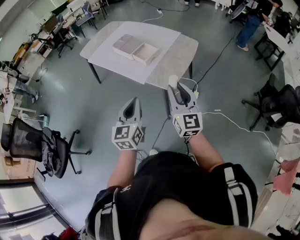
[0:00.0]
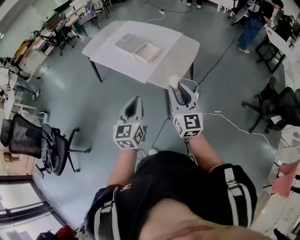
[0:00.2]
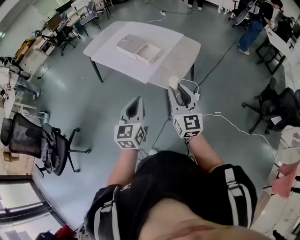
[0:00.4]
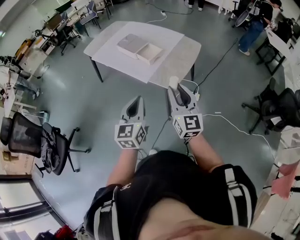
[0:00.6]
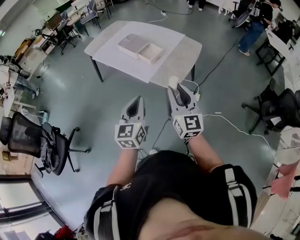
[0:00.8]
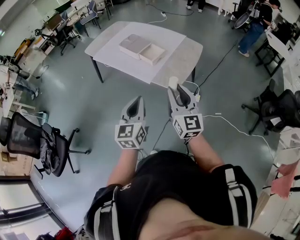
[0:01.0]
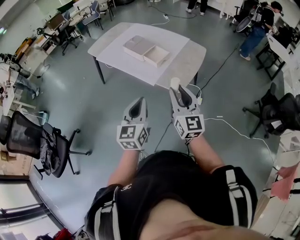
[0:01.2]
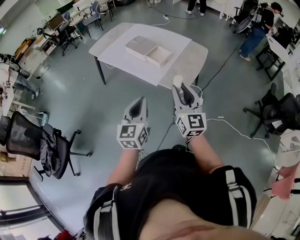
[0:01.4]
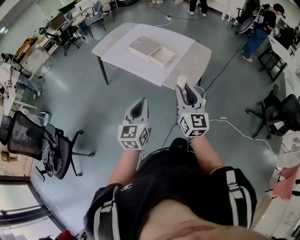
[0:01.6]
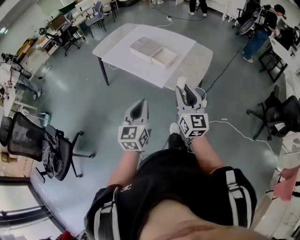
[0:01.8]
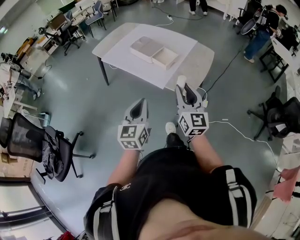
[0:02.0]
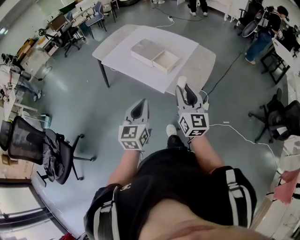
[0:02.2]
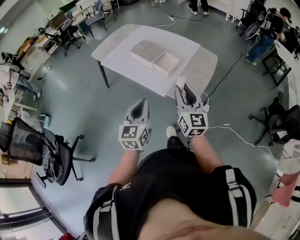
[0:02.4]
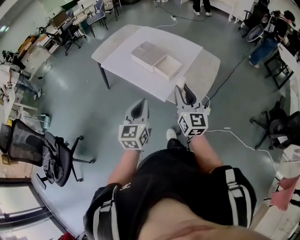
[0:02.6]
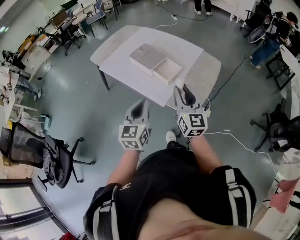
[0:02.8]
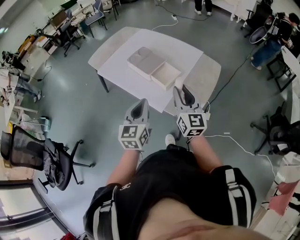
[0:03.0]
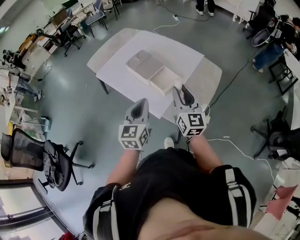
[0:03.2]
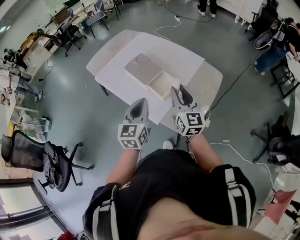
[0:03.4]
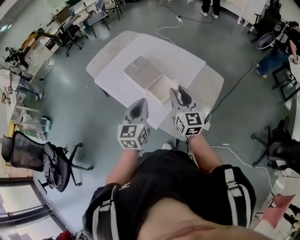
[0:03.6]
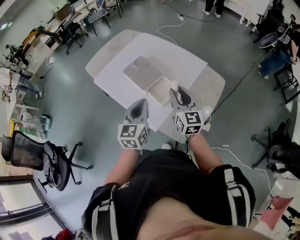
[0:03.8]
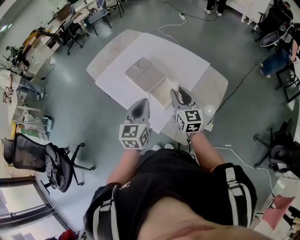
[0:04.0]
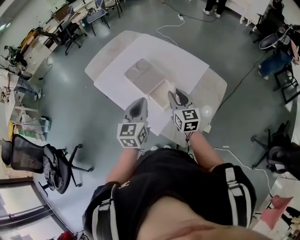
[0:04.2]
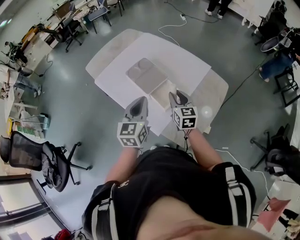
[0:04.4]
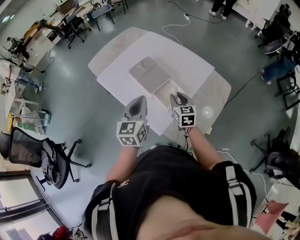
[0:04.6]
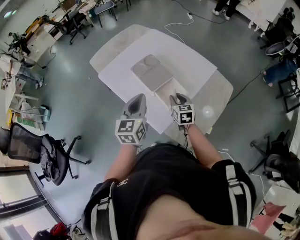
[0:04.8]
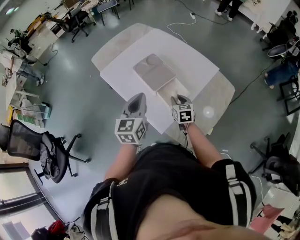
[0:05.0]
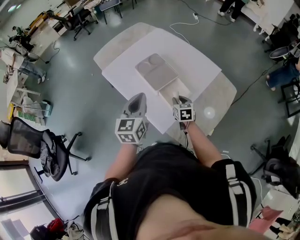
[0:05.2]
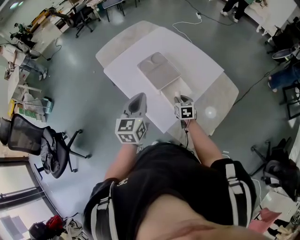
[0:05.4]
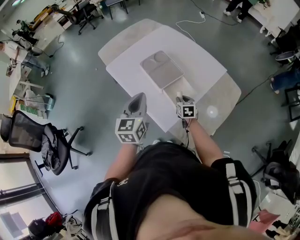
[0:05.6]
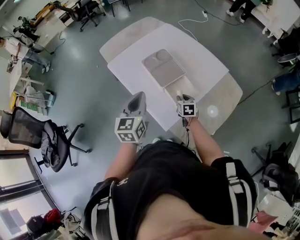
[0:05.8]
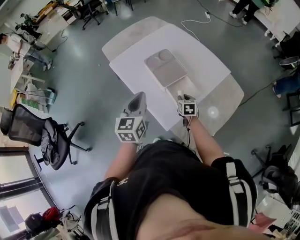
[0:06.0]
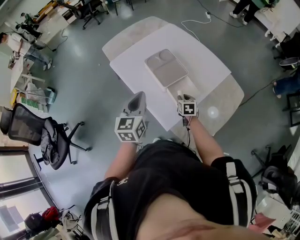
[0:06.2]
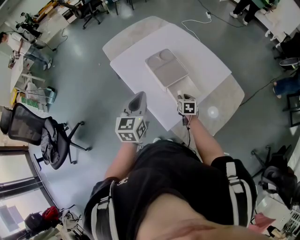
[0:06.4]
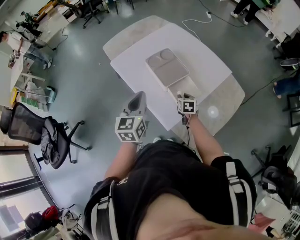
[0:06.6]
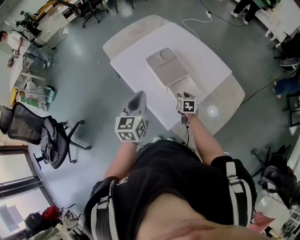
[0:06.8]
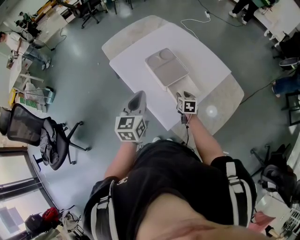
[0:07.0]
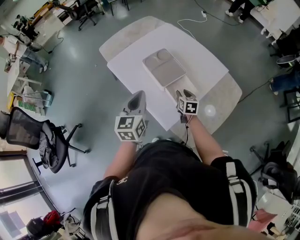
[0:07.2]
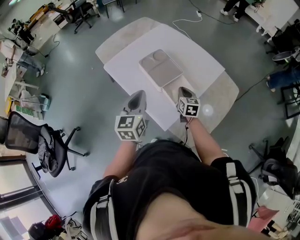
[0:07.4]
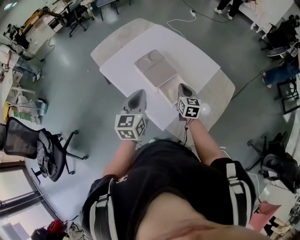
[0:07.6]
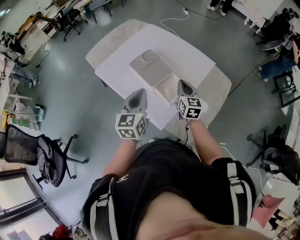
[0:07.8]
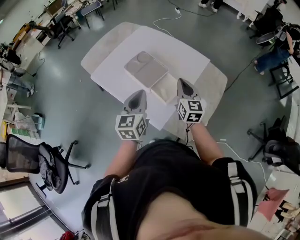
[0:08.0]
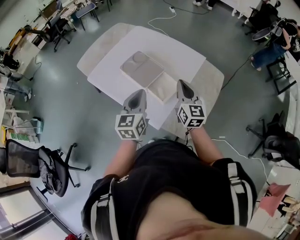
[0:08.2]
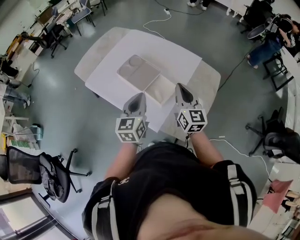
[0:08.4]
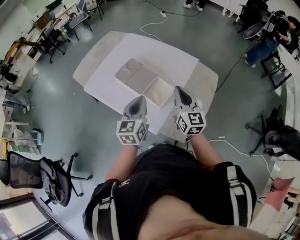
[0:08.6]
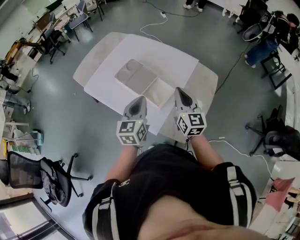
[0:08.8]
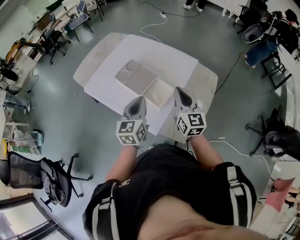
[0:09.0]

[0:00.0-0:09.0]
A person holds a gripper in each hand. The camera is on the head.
0:00.0 to 0:01.6: Both grippers travel together to the left, roughly 10 cm.
0:01.6 to 0:03.0: The grippers both shift forward by roughly 25 cm.
0:03.0 to 0:04.4: The right gripper is displaced forward and downward by approximately 25 cm, and changes its angle by about 20 degrees. The left gripper travels forward by some 20 cm.
0:04.4 to 0:06.0: The left gripper shifts roughly 10 cm to the left. Meanwhile the right gripper heads downward, covering some 20 cm, and changes its angle by about 30 degrees.
0:06.0 to 0:07.6: The right gripper moves upward, some 15 cm, rotates some 30 degrees, and closes up.
0:07.6 to 0:09.0: The left gripper travels to the right by approximately 10 cm; the right gripper heads upward, backward and to the right, covering approximately 15 cm.

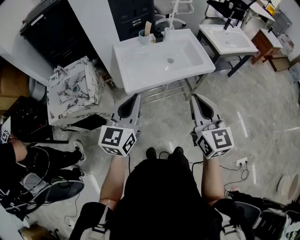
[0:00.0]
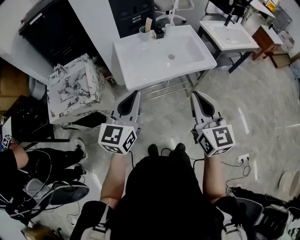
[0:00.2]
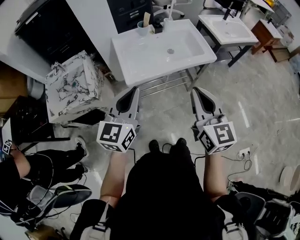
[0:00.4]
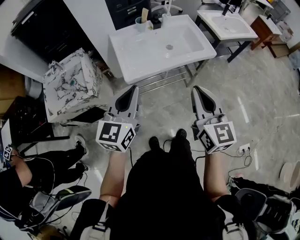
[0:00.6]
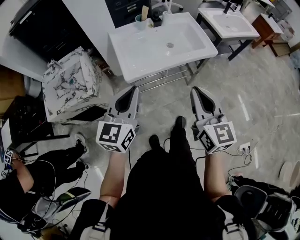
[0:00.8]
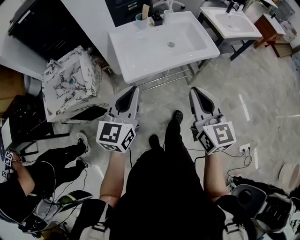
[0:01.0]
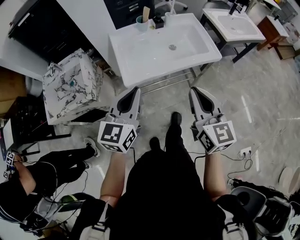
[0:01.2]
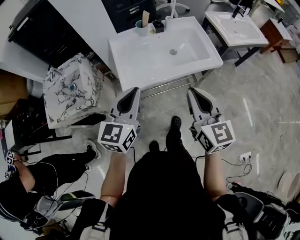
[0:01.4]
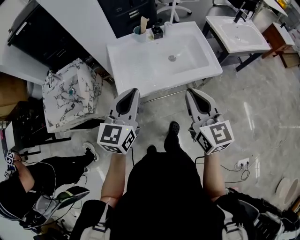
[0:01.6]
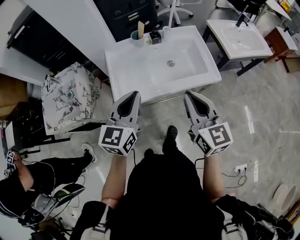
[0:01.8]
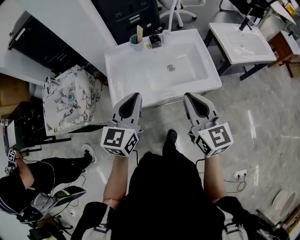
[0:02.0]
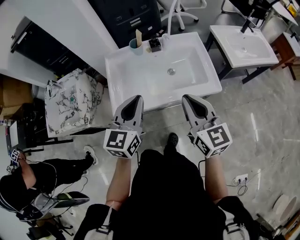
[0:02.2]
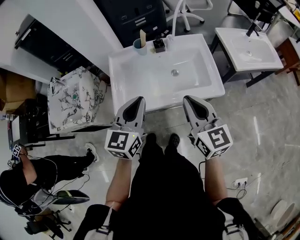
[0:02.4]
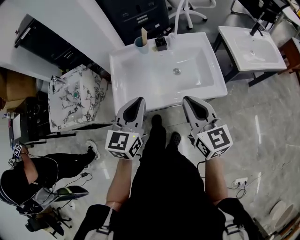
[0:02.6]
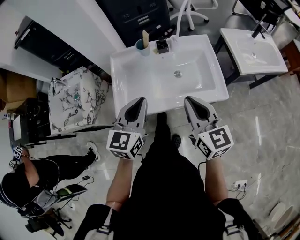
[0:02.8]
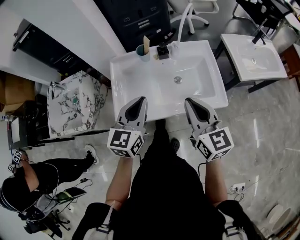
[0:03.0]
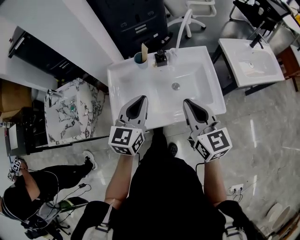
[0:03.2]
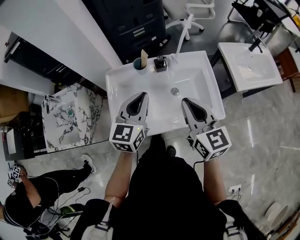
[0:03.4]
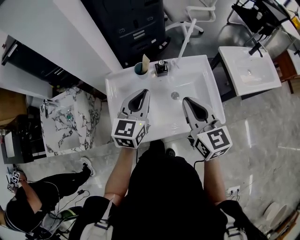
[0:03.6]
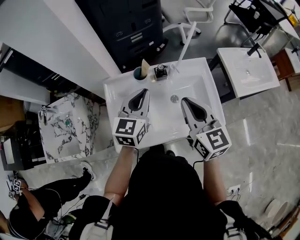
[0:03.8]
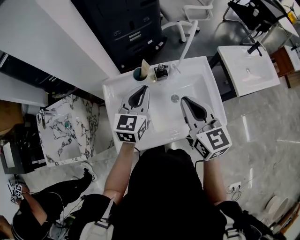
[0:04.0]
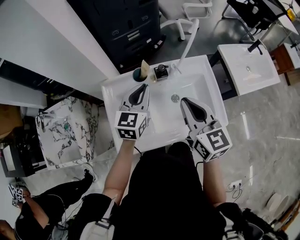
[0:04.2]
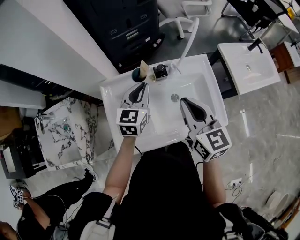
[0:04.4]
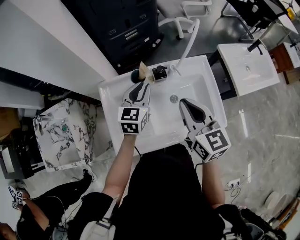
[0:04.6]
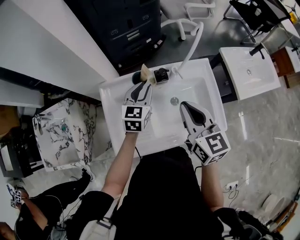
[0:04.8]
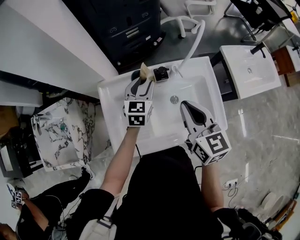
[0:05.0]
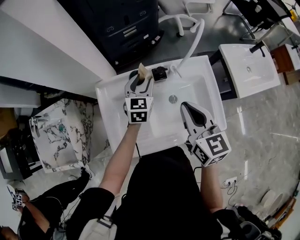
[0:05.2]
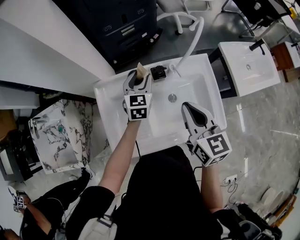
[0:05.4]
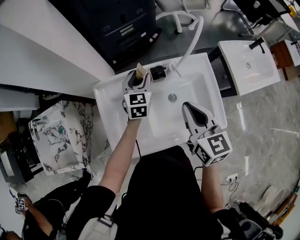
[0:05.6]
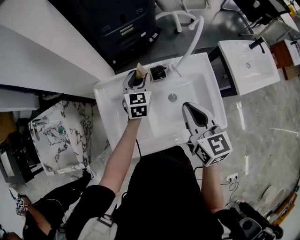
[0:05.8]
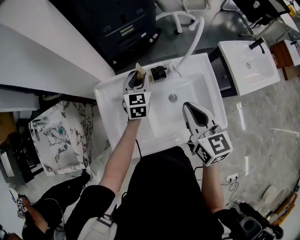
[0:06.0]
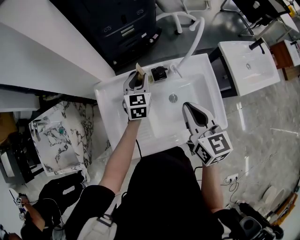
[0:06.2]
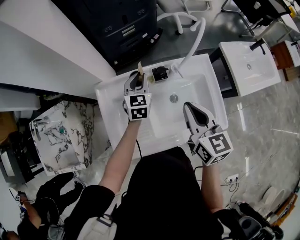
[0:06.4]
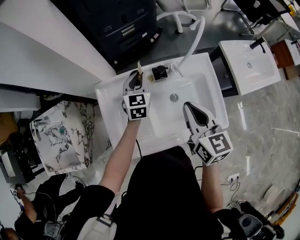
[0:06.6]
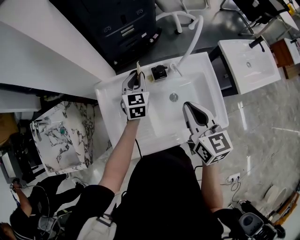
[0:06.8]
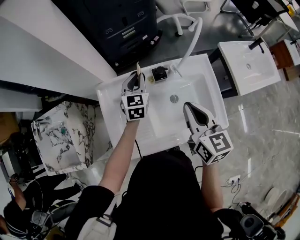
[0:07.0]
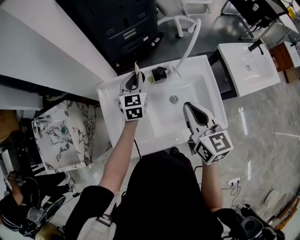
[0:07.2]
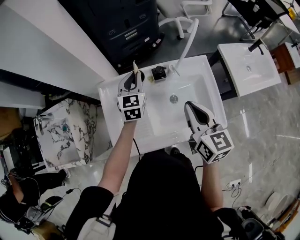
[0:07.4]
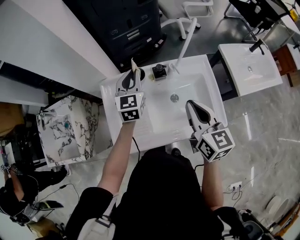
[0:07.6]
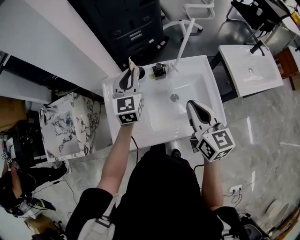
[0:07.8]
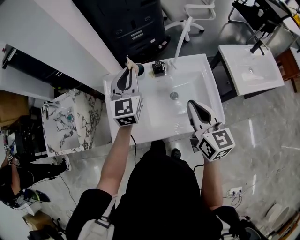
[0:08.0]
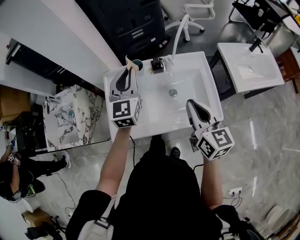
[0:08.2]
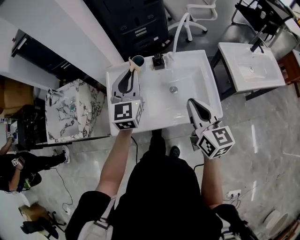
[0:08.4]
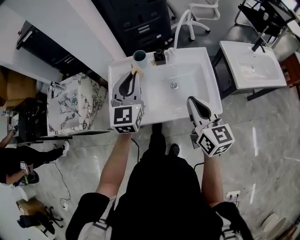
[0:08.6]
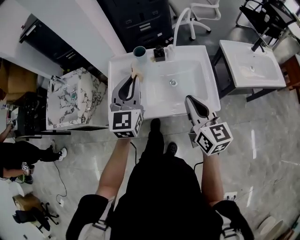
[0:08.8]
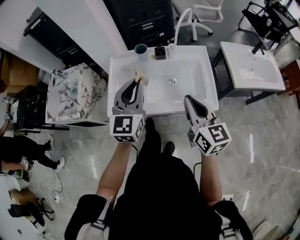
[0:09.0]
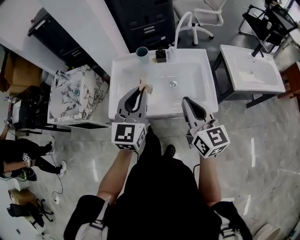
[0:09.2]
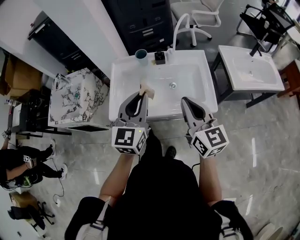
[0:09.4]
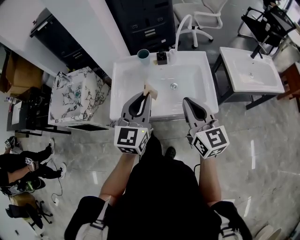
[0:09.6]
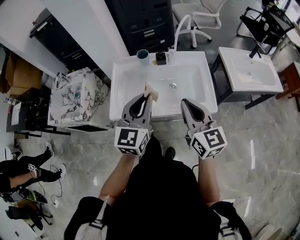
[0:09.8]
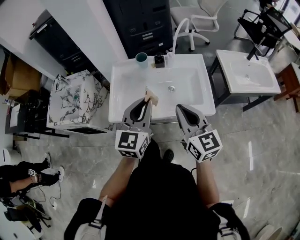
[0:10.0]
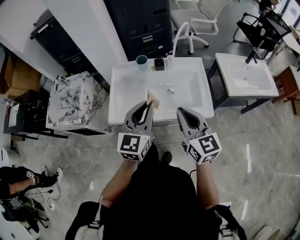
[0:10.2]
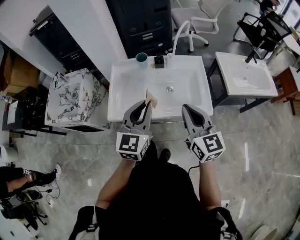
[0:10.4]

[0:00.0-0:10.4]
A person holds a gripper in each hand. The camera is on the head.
0:00.0 to 0:01.4: Both grippers move forward, about 10 cm.
0:01.4 to 0:03.0: The two grippers go some 20 cm forward and to the right.
0:03.0 to 0:04.4: Both grippers move forward, approximately 20 cm.
0:04.4 to 0:06.0: The left gripper moves forward and downward, approximately 15 cm, and opens.
0:06.0 to 0:07.4: The left gripper heads upward, covering about 5 cm, and closes.
0:07.4 to 0:09.0: The left gripper goes some 35 cm backward and upward. The right gripper shifts some 15 cm backward.
0:09.0 to 0:10.4: The left gripper travels backward by roughly 5 cm.

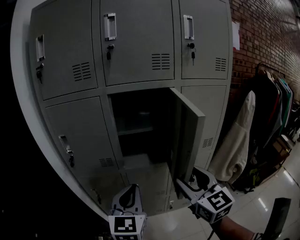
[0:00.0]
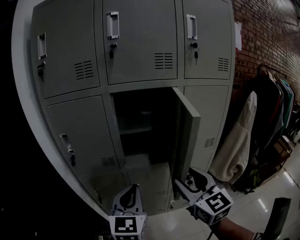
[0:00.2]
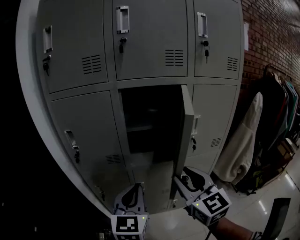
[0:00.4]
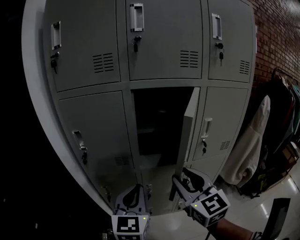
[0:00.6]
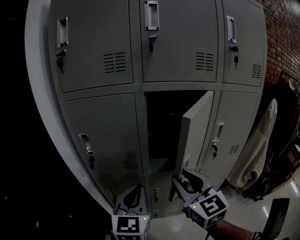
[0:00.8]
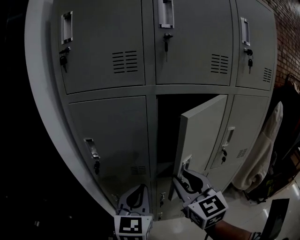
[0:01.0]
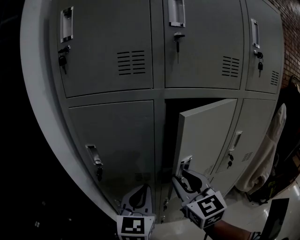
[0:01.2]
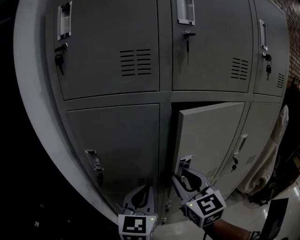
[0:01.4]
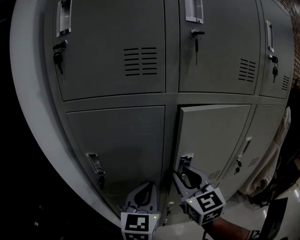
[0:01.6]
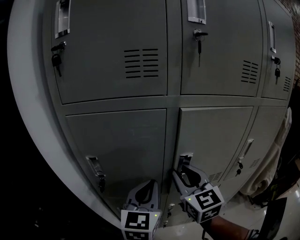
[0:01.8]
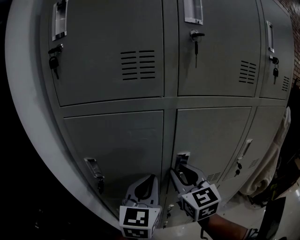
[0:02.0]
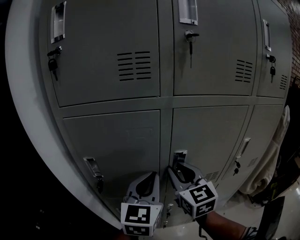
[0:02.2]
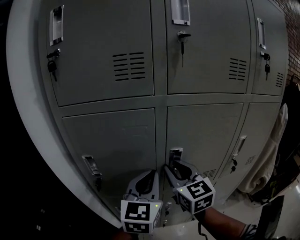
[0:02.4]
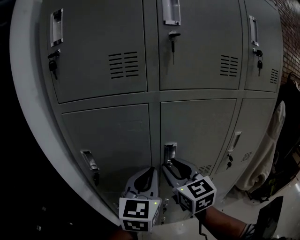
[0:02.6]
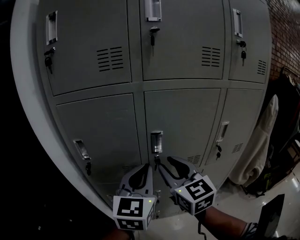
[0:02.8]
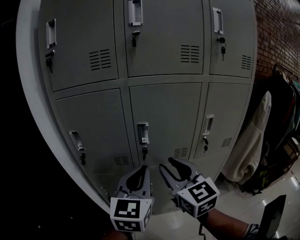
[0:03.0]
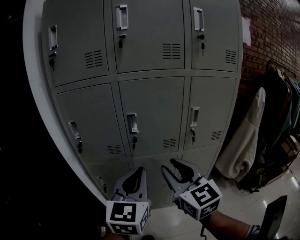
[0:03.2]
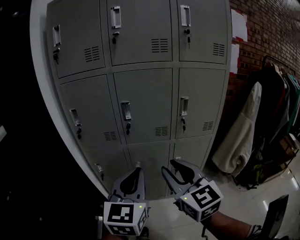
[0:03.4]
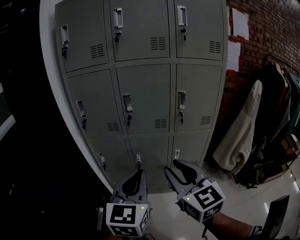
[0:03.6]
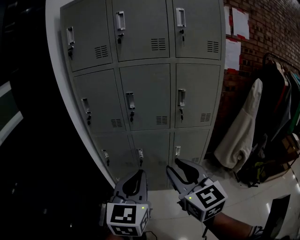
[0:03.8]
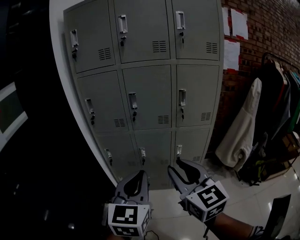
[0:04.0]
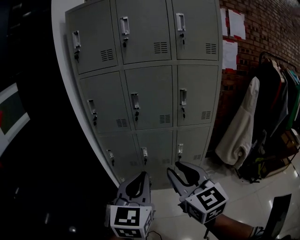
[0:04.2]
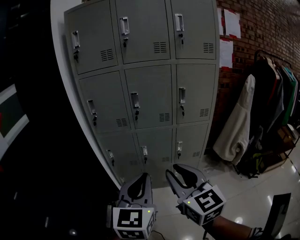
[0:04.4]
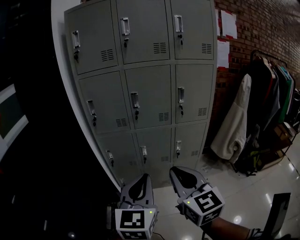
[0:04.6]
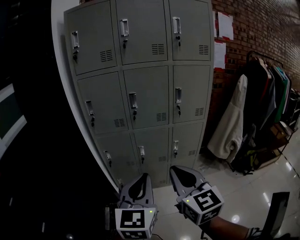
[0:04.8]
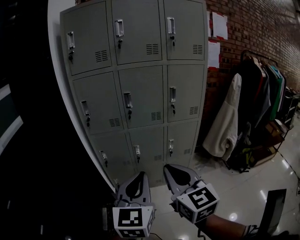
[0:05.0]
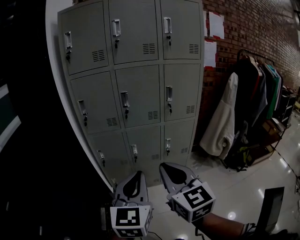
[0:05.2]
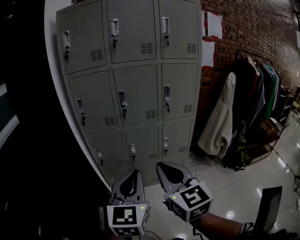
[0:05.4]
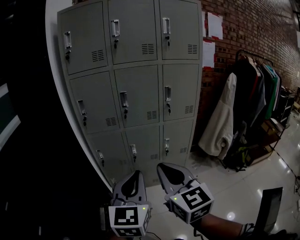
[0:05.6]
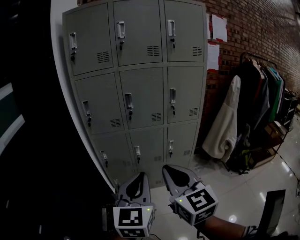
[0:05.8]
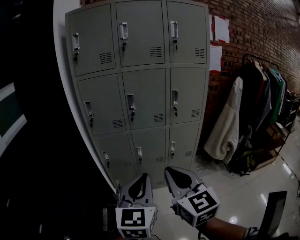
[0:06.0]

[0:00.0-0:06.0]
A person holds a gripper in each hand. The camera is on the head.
0:00.0 to 0:01.6: The grippers both shift forward and to the left by roughly 25 cm. The right gripper closes its fingers.
0:01.6 to 0:03.0: The grippers both shift backward and to the right by some 15 cm.
0:03.0 to 0:04.4: Both grippers move backward, some 35 cm.
0:04.4 to 0:06.0: The right gripper closes up.
